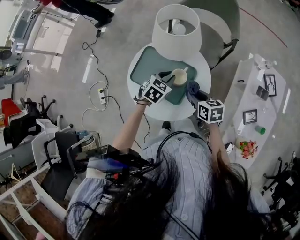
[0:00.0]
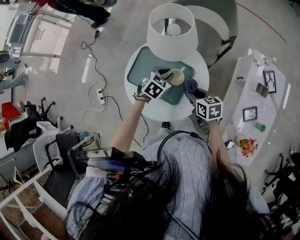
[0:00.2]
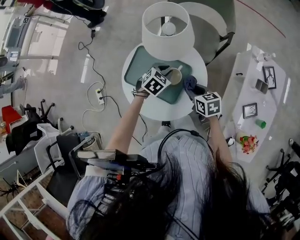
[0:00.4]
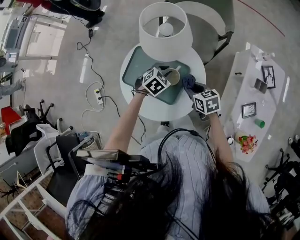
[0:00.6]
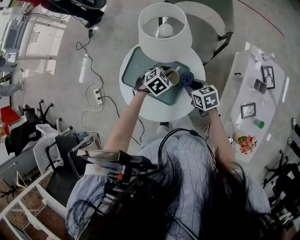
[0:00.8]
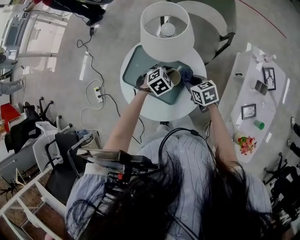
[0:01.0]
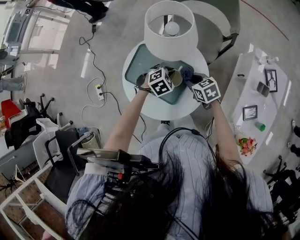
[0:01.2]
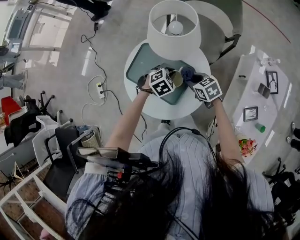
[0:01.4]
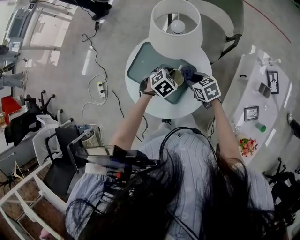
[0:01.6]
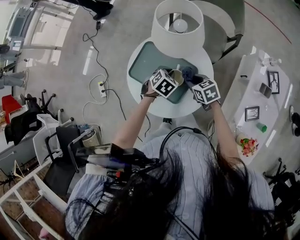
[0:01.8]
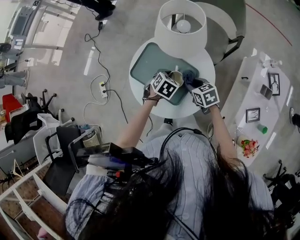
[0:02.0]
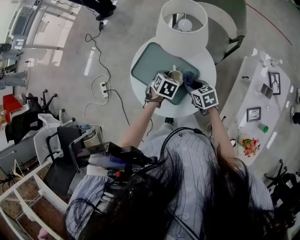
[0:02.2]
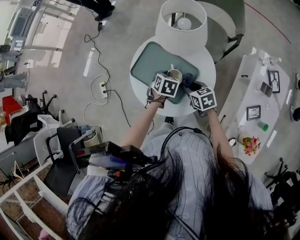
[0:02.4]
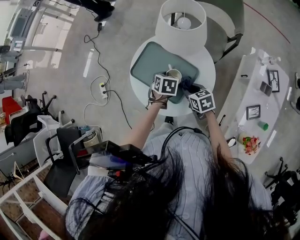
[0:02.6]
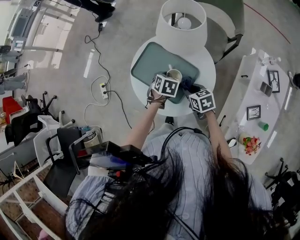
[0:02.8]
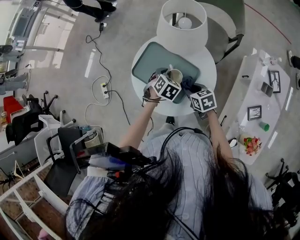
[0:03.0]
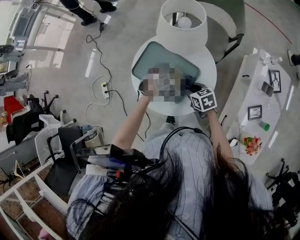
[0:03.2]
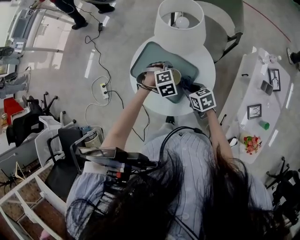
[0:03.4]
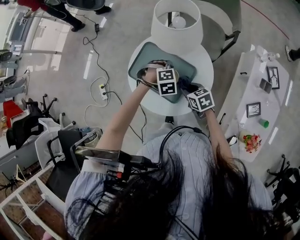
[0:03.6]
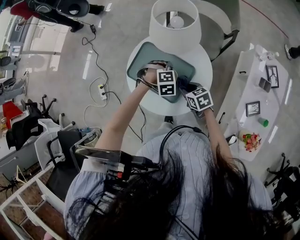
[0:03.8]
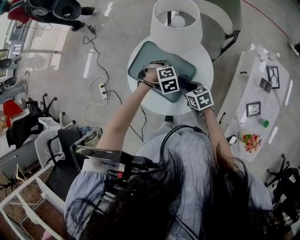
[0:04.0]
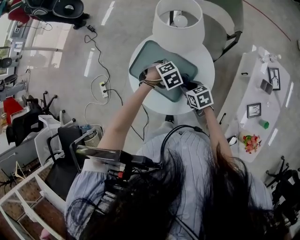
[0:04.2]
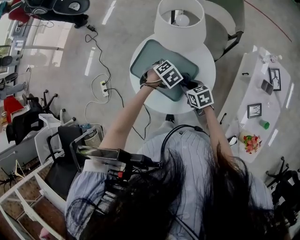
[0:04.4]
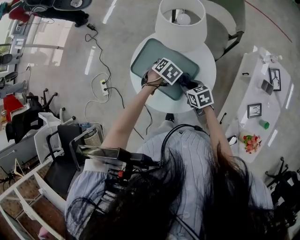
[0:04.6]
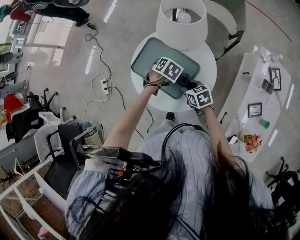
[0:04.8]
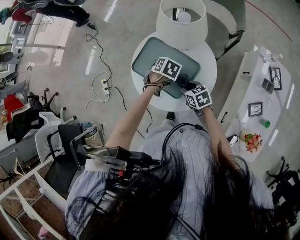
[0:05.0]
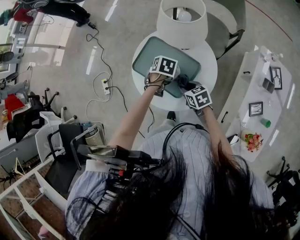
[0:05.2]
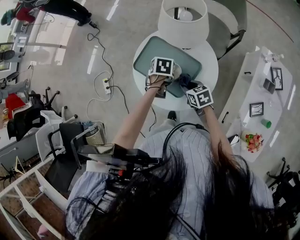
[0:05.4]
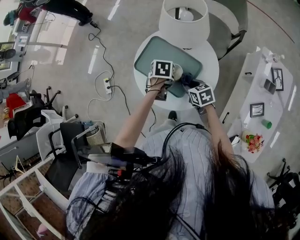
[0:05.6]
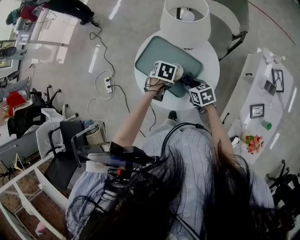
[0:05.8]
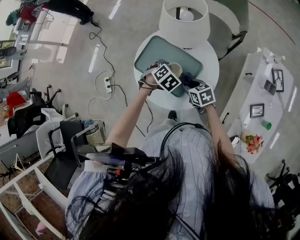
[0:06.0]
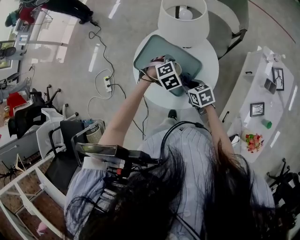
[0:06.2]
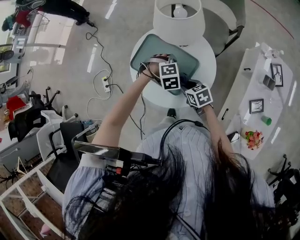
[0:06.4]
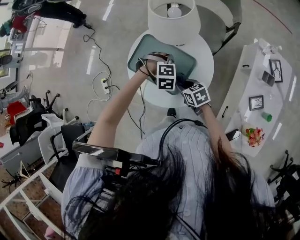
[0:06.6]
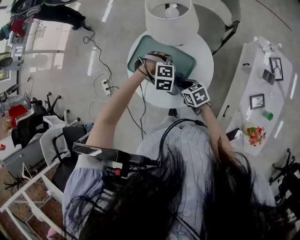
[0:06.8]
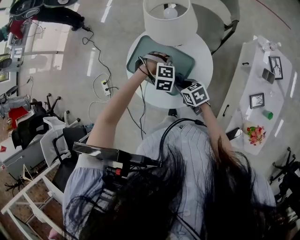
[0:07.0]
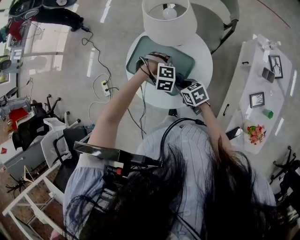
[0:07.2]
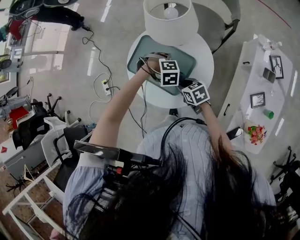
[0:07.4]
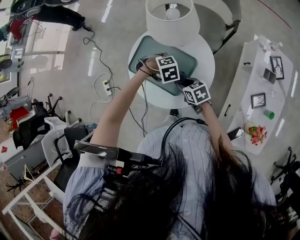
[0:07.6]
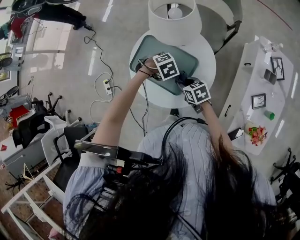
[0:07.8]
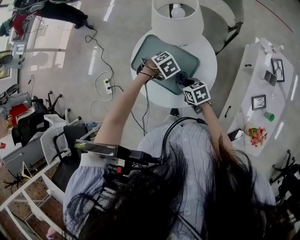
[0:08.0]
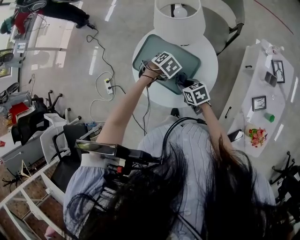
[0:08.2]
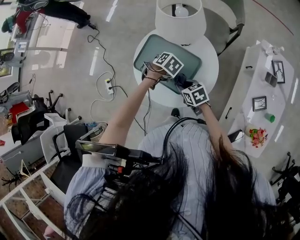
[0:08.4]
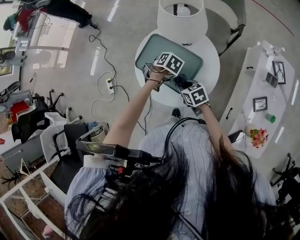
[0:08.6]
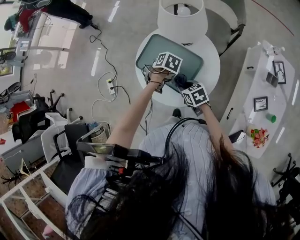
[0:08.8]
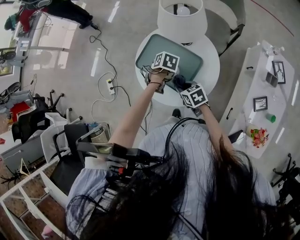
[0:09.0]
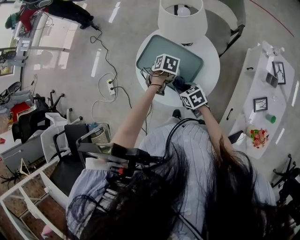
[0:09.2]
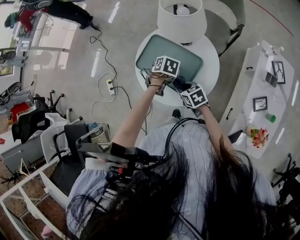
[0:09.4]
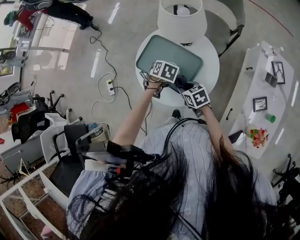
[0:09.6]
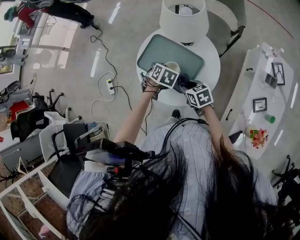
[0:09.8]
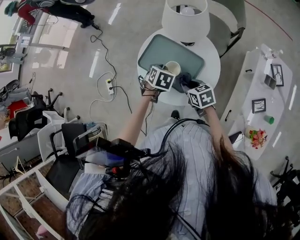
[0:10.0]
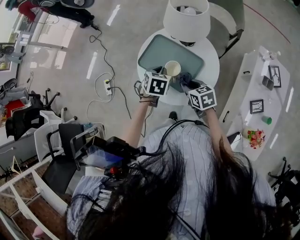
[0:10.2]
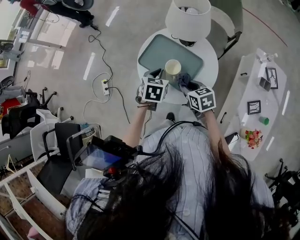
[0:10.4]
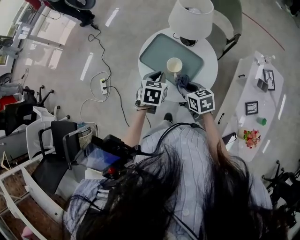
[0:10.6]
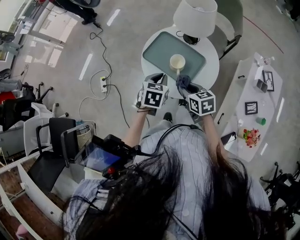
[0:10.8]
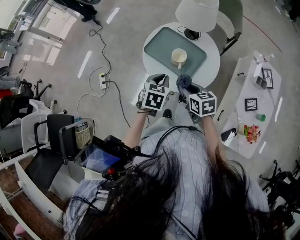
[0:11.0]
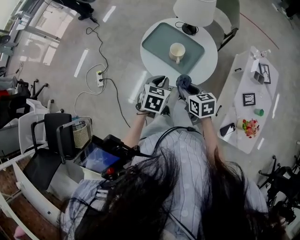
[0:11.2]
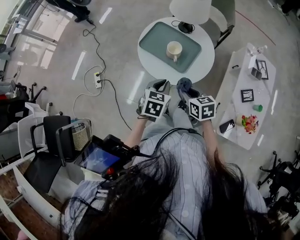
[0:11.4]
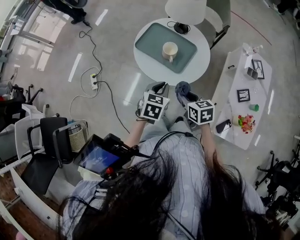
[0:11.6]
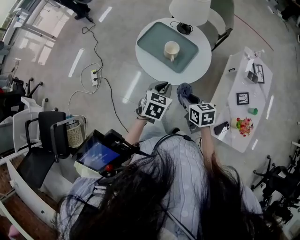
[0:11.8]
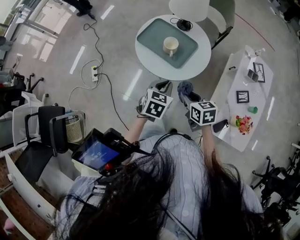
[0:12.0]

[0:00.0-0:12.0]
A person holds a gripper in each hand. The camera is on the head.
0:00.0 to 0:01.6: The right gripper is displaced forward and downward by about 10 cm, and turns by about 20 degrees; the left gripper is displaced downward by approximately 5 cm.
0:01.6 to 0:03.0: The left gripper goes some 5 cm to the left, and turns by about 20 degrees, while the right gripper heads backward, covering roughly 5 cm.
0:03.0 to 0:04.4: The left gripper changes its angle by roughly 20 degrees.
0:06.0 to 0:07.6: The left gripper rotates roughly 40 degrees.
0:07.6 to 0:09.0: The left gripper ends up approximately 5 cm from where it was, and rolls counterclockwise, seen from behind, by approximately 60 degrees. The right gripper changes place by approximately 5 cm.
0:09.0 to 0:10.4: The left gripper travels upward by roughly 10 cm, and tips its fingers upward by roughly 30 degrees. Meanwhile the right gripper is displaced upward by approximately 5 cm.
0:10.4 to 0:12.0: Both grippers travel together backward, about 20 cm.

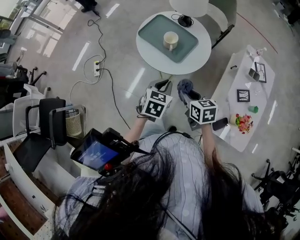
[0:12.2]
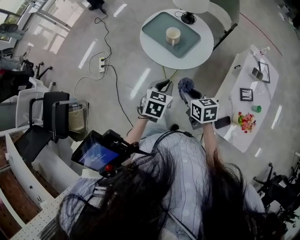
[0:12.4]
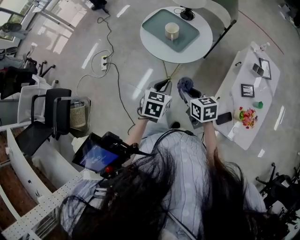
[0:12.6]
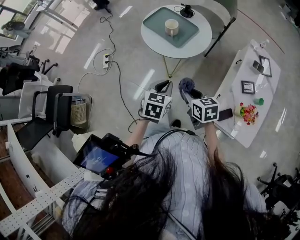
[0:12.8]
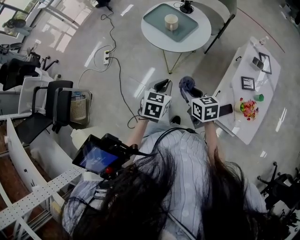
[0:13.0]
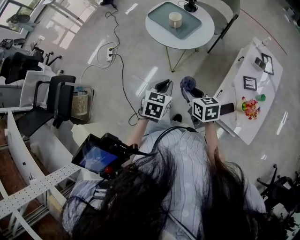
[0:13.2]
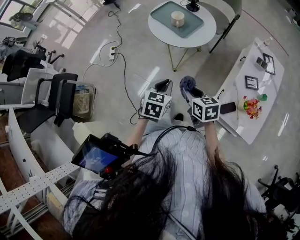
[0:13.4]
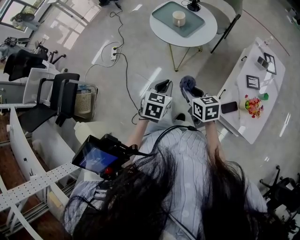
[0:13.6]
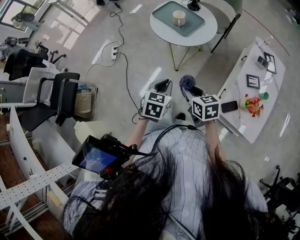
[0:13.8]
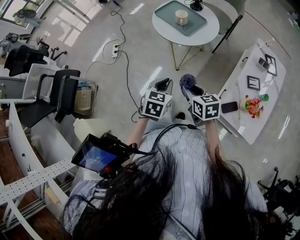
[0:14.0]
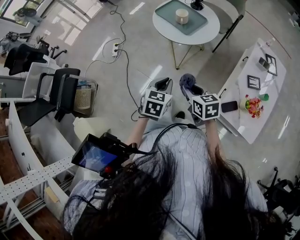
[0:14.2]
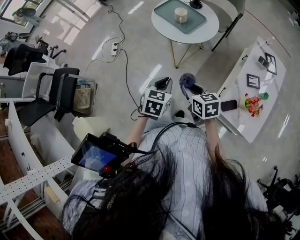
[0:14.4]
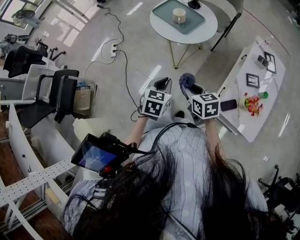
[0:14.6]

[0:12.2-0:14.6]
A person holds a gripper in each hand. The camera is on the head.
0:12.2 to 0:13.4: Both grippers travel together backward, approximately 20 cm.
0:13.4 to 0:14.6: The grippers move only a little.

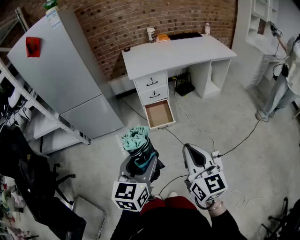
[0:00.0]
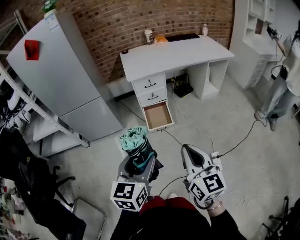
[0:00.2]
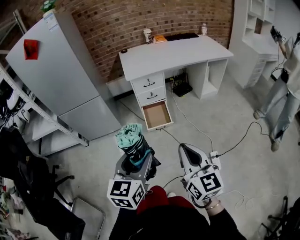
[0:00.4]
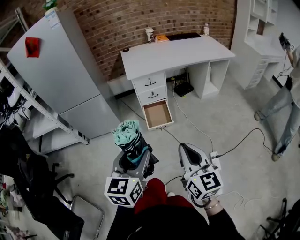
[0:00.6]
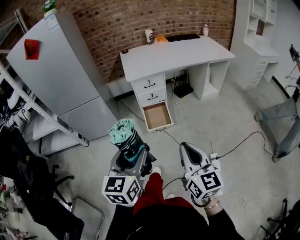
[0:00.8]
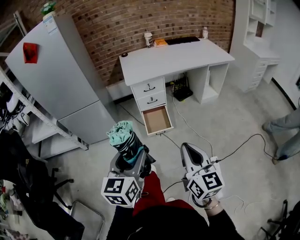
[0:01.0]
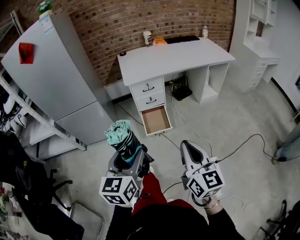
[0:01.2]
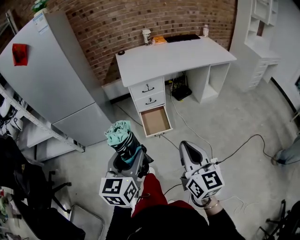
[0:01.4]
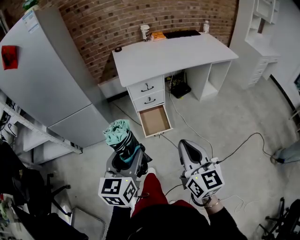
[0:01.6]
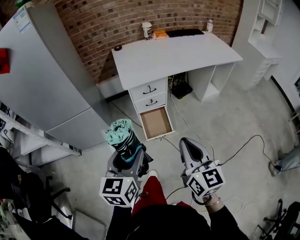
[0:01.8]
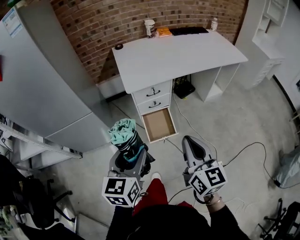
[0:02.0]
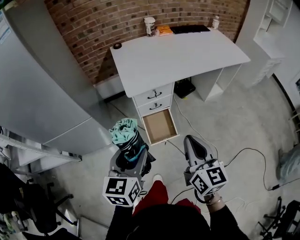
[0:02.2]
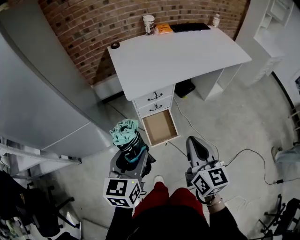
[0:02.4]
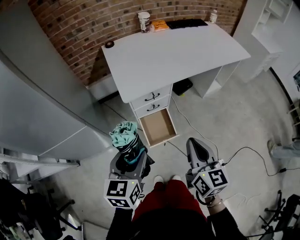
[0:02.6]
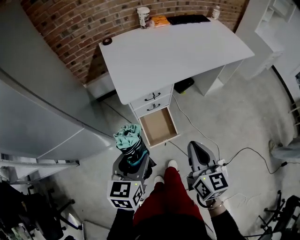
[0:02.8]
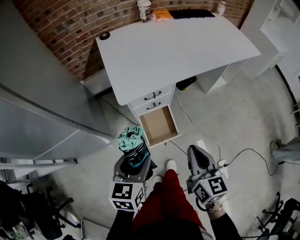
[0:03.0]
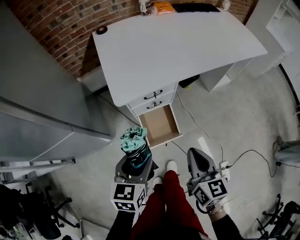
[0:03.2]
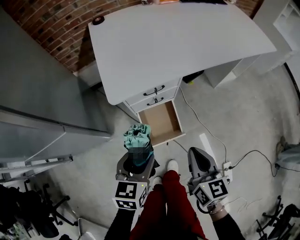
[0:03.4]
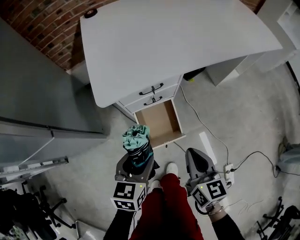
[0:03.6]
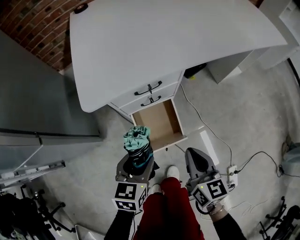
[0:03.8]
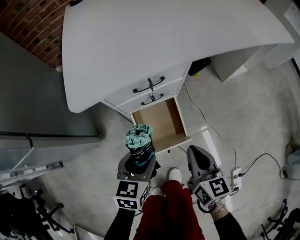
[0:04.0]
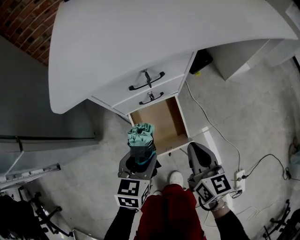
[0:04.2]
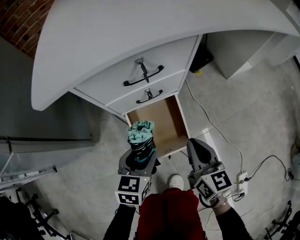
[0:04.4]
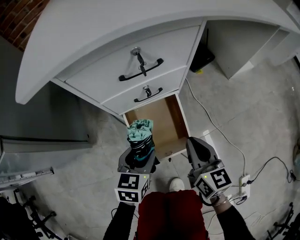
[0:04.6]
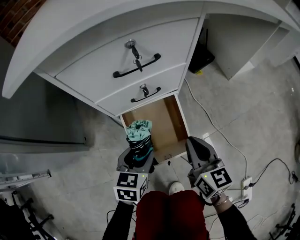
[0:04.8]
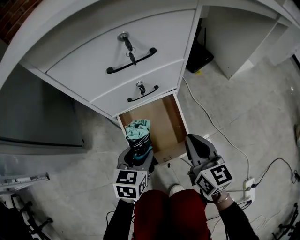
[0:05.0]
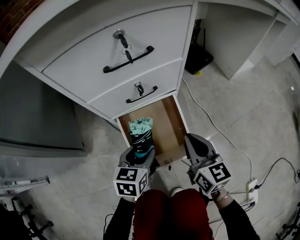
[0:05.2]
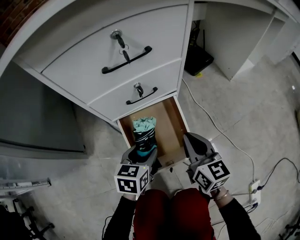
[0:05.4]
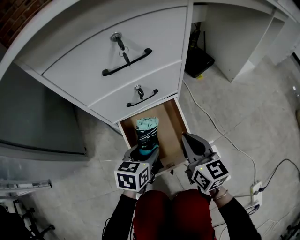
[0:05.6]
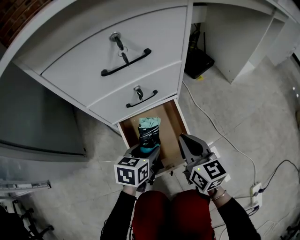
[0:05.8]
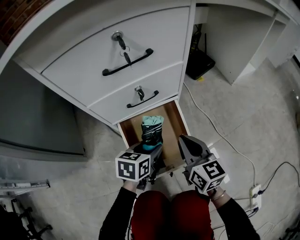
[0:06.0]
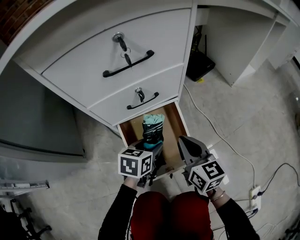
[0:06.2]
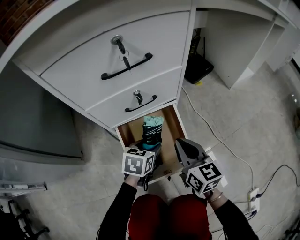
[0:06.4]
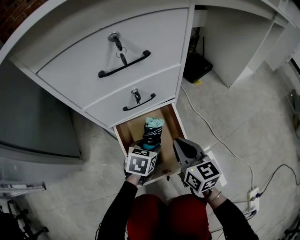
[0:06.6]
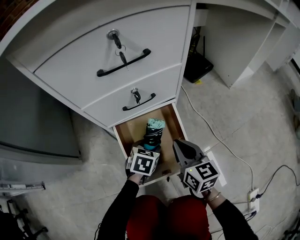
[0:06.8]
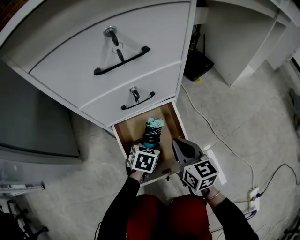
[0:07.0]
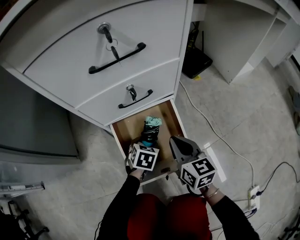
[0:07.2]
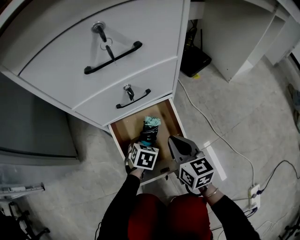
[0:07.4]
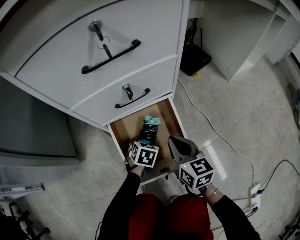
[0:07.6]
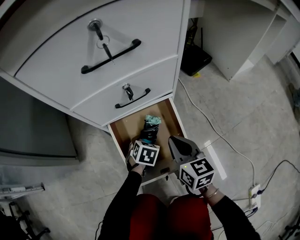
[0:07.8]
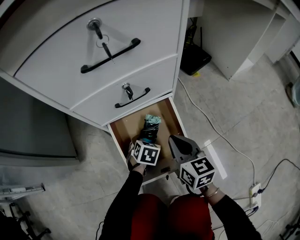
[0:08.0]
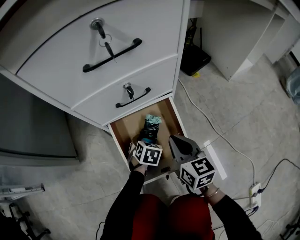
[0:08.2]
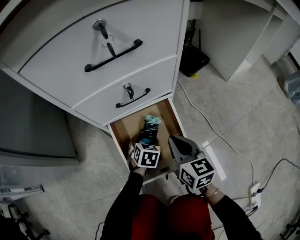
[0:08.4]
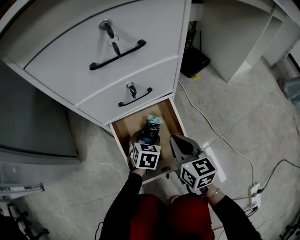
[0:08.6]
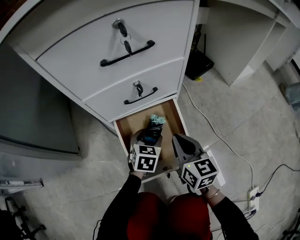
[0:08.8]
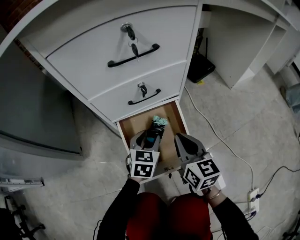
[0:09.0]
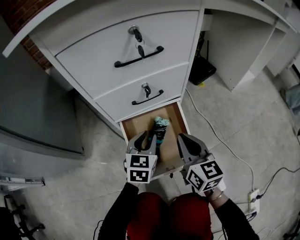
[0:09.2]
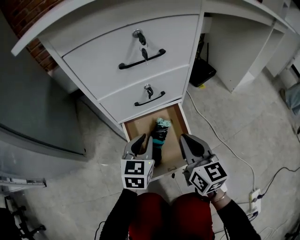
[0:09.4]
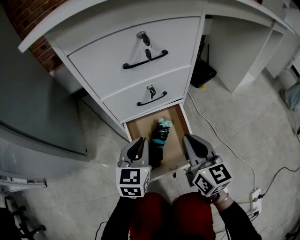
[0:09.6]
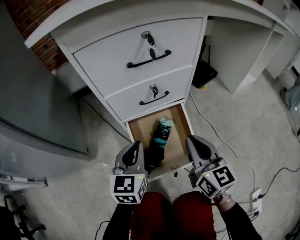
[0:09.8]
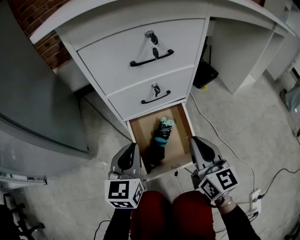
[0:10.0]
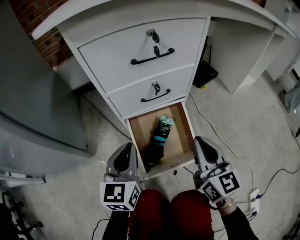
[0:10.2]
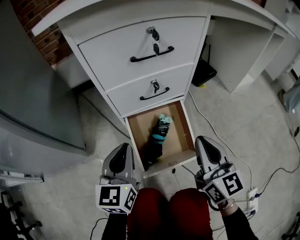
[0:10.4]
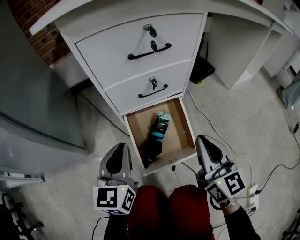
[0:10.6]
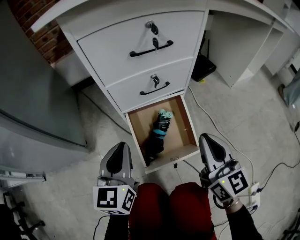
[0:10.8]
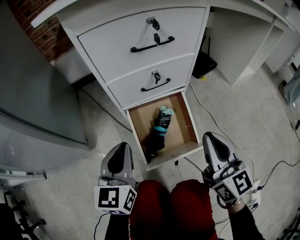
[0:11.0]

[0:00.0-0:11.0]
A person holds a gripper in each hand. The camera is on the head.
0:00.0 to 0:01.6: The grippers both shift forward by roughly 15 cm.
0:01.6 to 0:03.2: The two grippers go about 35 cm forward and downward. The left gripper swivels approximately 20 degrees. Meanwhile the right gripper swivels approximately 20 degrees.
0:03.2 to 0:04.8: Both grippers move downward, roughly 40 cm.
0:04.8 to 0:06.2: The right gripper moves downward, approximately 10 cm; the left gripper is displaced downward and forward by about 10 cm.
0:06.2 to 0:07.8: The left gripper shifts about 15 cm downward, and rotates some 30 degrees. The right gripper is displaced downward by about 5 cm.
0:07.8 to 0:09.4: The left gripper heads upward, covering roughly 20 cm, tips its fingers upward by roughly 30 degrees, and closes up. Meanwhile the right gripper is displaced upward by some 10 cm.
0:09.4 to 0:11.0: The left gripper moves upward, to the left and backward, roughly 15 cm; the right gripper shifts approximately 10 cm upward and backward.
